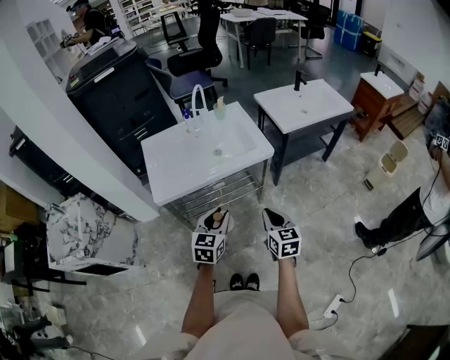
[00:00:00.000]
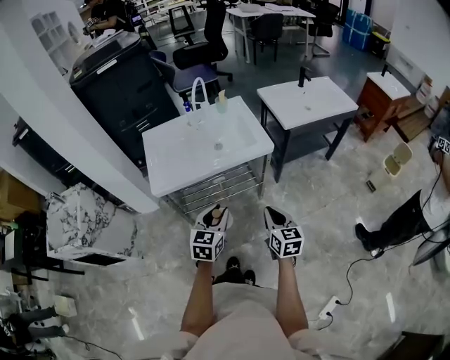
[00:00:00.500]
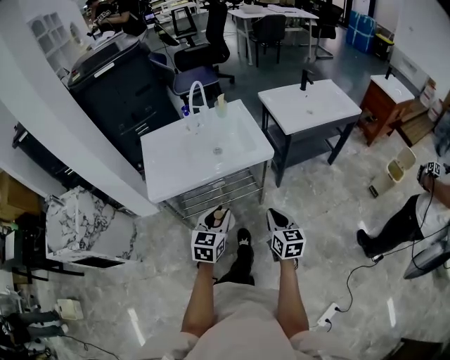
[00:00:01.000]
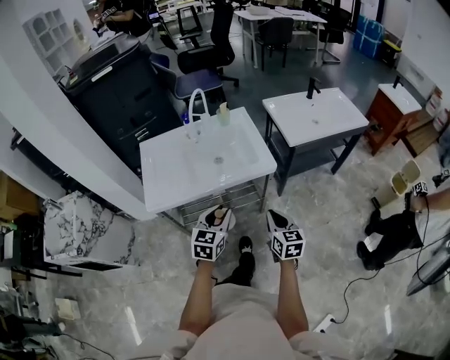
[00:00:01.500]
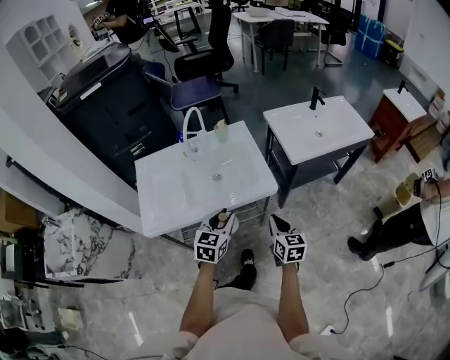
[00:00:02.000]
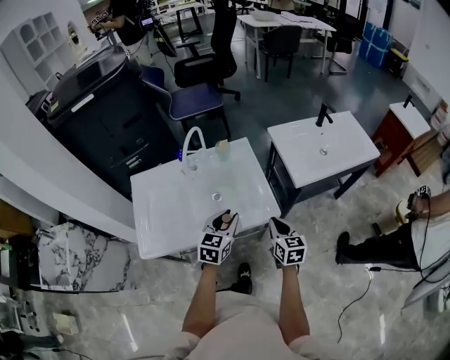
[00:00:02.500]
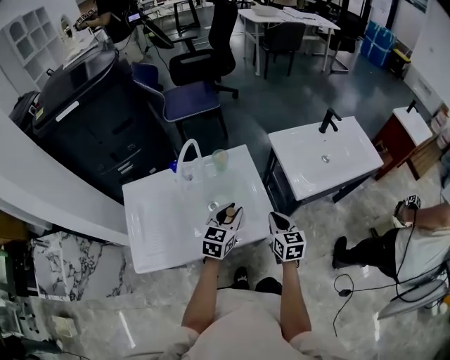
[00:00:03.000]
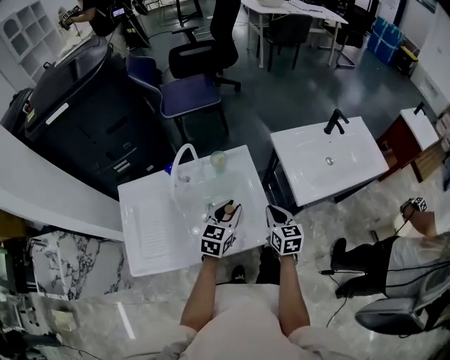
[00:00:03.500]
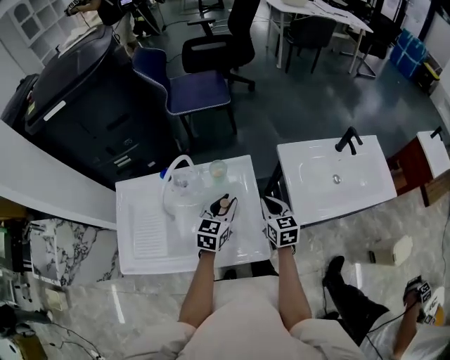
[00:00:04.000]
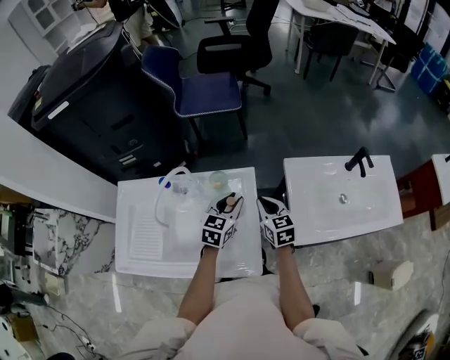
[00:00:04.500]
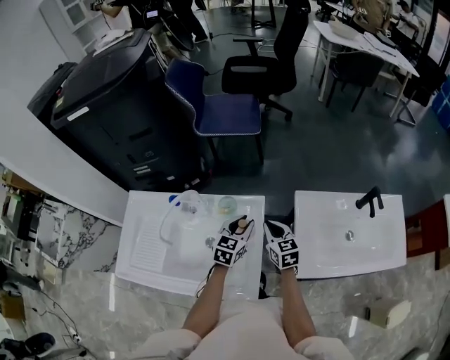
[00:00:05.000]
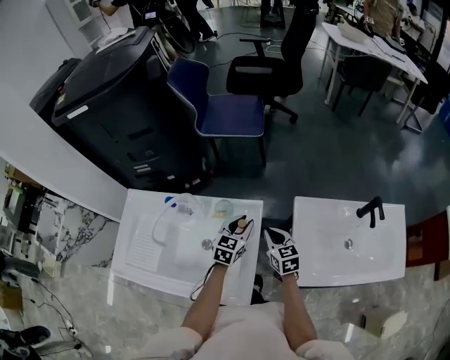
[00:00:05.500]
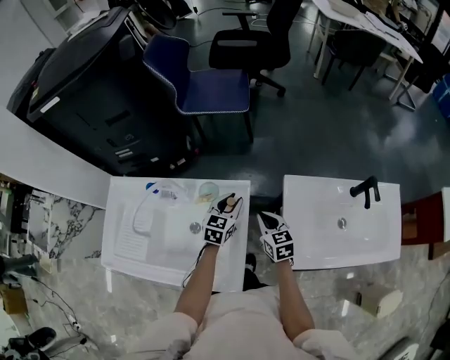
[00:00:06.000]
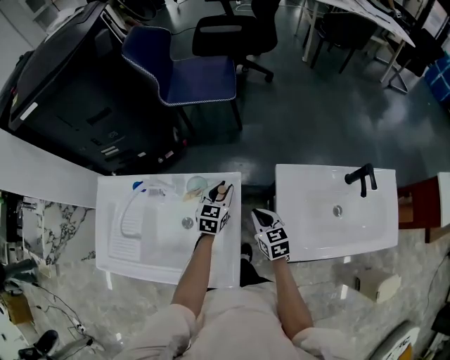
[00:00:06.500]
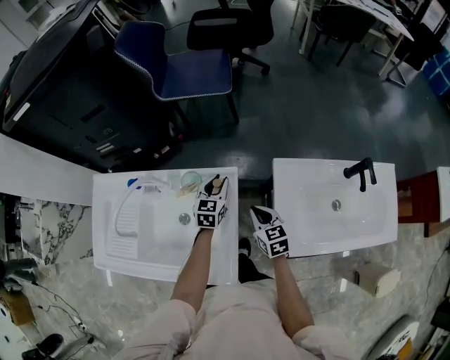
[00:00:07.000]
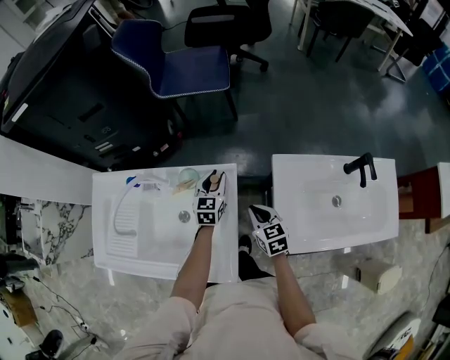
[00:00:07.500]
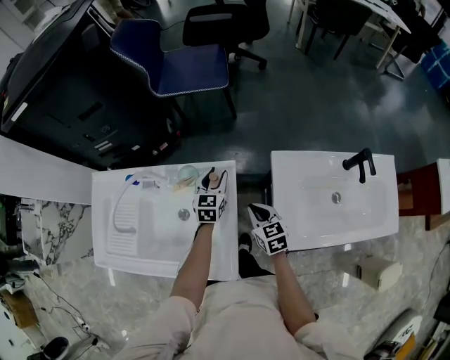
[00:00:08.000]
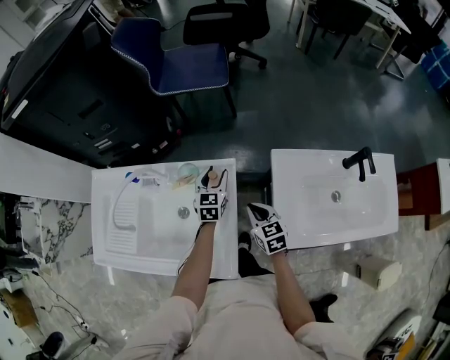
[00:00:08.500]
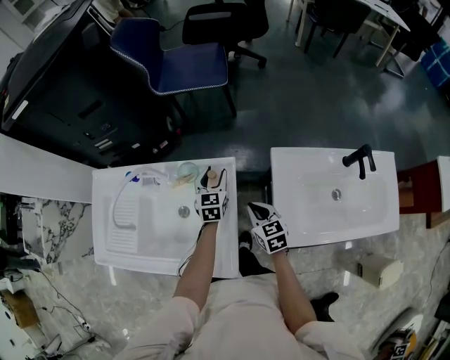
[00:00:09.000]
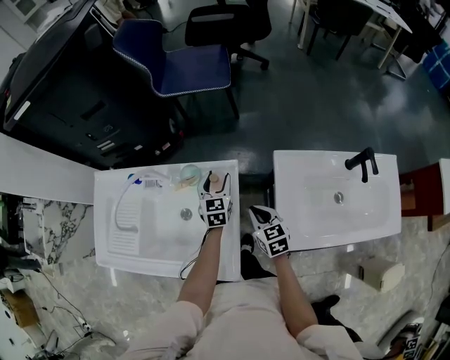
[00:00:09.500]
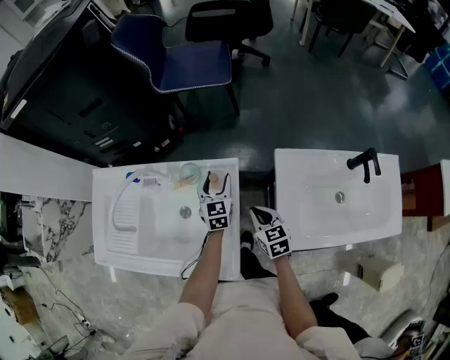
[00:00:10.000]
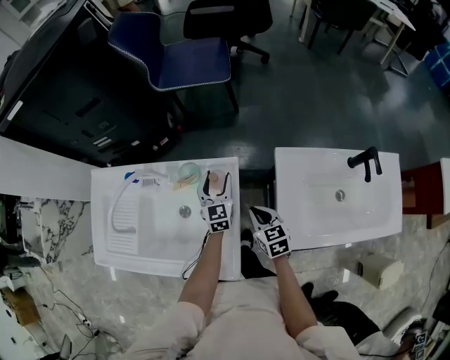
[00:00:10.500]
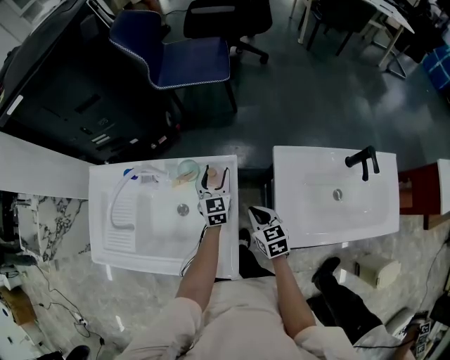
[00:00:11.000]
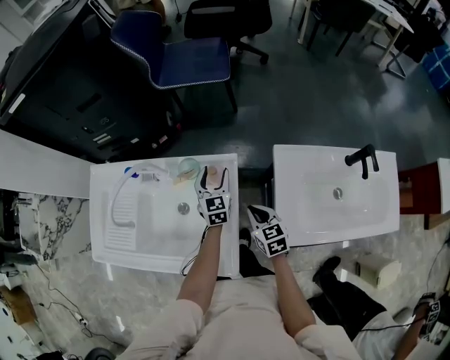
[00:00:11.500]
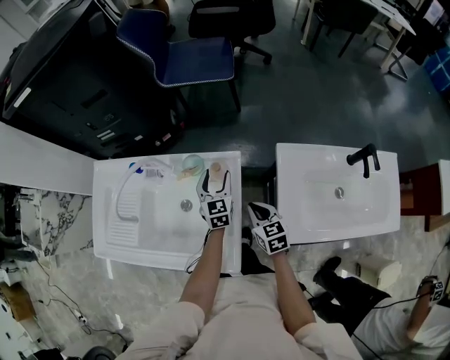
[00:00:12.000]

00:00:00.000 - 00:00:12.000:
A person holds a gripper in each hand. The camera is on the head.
00:00:00.000 - 00:00:02.000: The grippers both shift forward by some 20 cm.
00:00:02.000 - 00:00:04.000: Both grippers travel together forward, approximately 30 cm.
00:00:04.000 - 00:00:06.000: The left gripper is displaced forward, downward and to the right by roughly 15 cm, while the right gripper moves forward and downward, approximately 10 cm.
00:00:06.000 - 00:00:08.000: The left gripper changes place by roughly 5 cm.
00:00:08.000 - 00:00:12.000: The grippers move only a little.

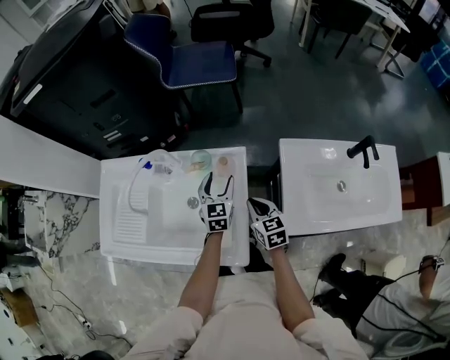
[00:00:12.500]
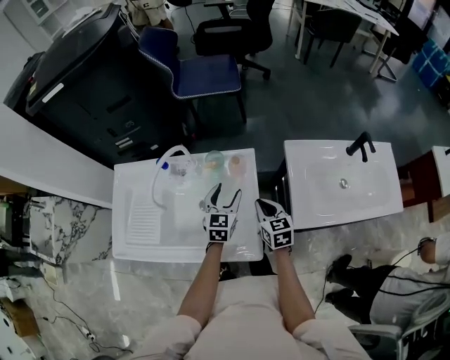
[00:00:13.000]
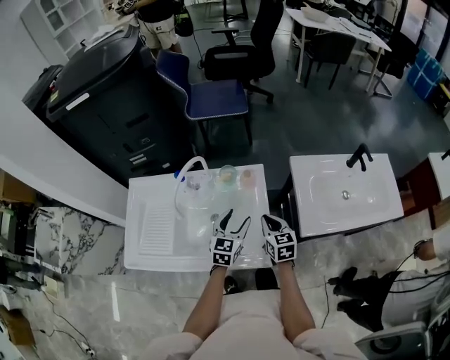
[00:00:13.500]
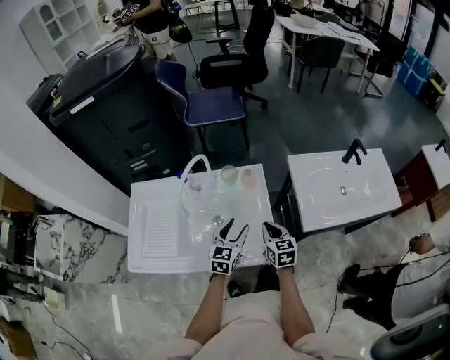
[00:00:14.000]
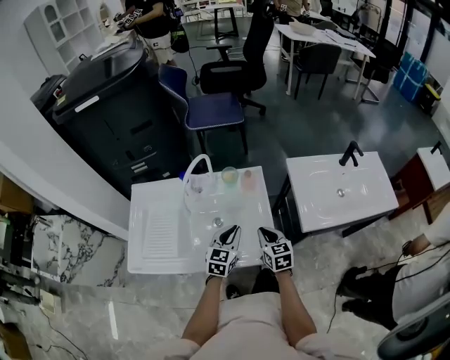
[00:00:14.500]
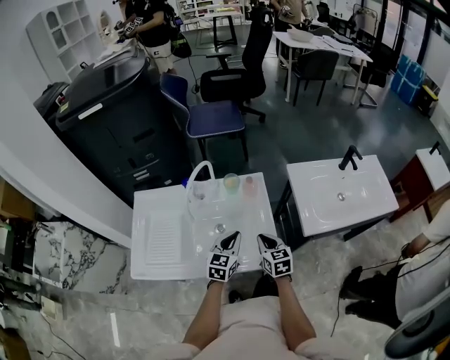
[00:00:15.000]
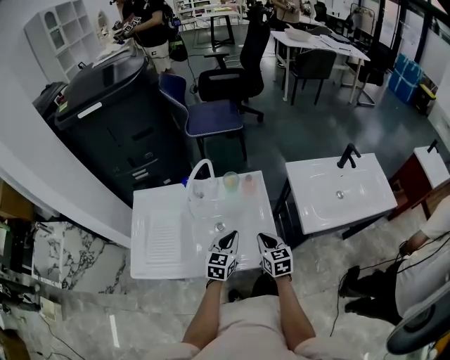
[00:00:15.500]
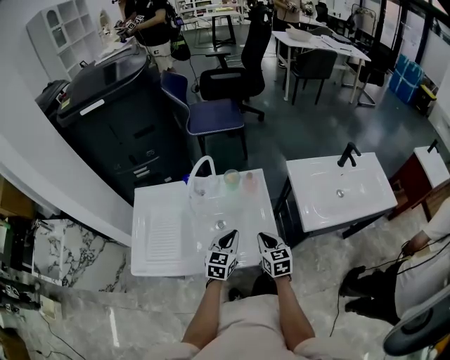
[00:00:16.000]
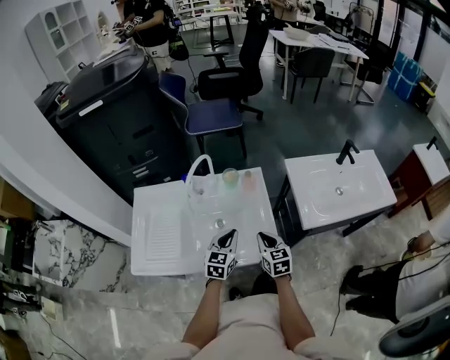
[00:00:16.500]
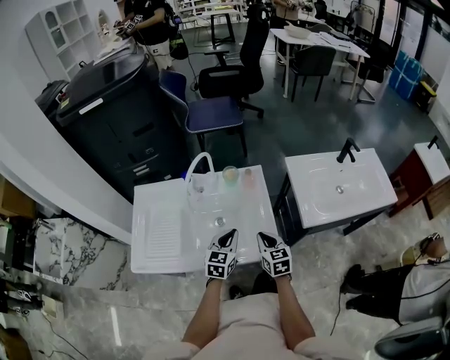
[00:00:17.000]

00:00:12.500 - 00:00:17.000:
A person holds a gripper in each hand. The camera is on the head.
00:00:12.500 - 00:00:14.500: The right gripper moves backward and to the left, about 10 cm. Meanwhile the left gripper travels backward by some 15 cm, changes its angle by approximately 20 degrees, and closes its fingers.
00:00:14.500 - 00:00:17.000: There are only small adjustments of the grippers.

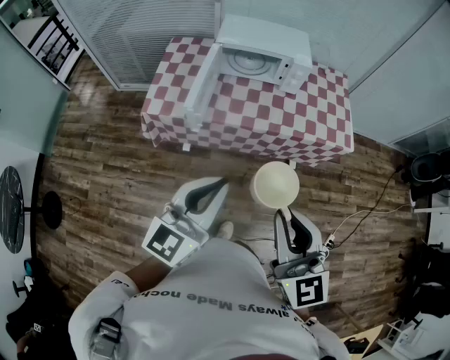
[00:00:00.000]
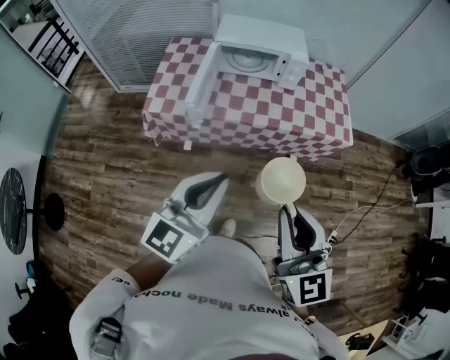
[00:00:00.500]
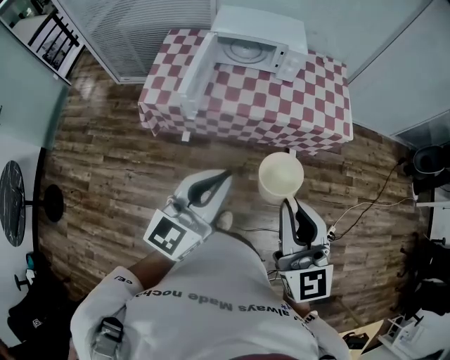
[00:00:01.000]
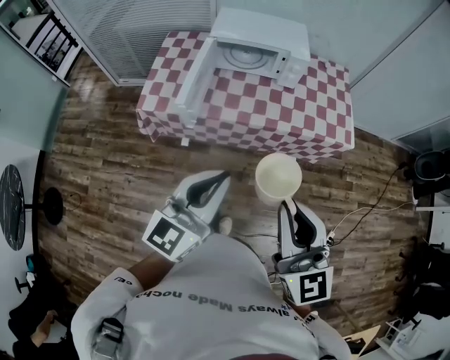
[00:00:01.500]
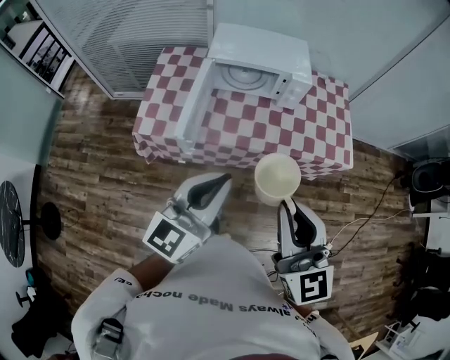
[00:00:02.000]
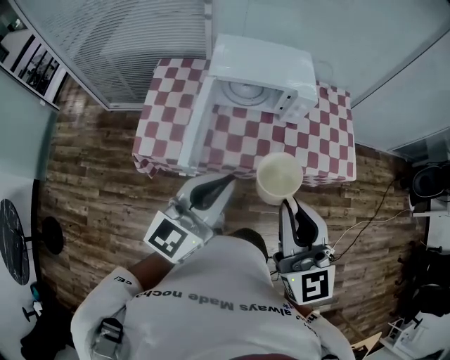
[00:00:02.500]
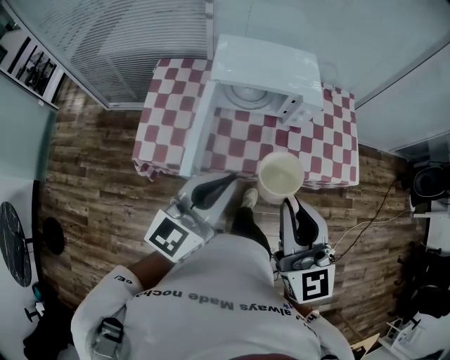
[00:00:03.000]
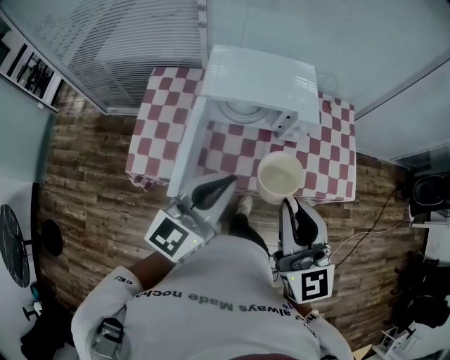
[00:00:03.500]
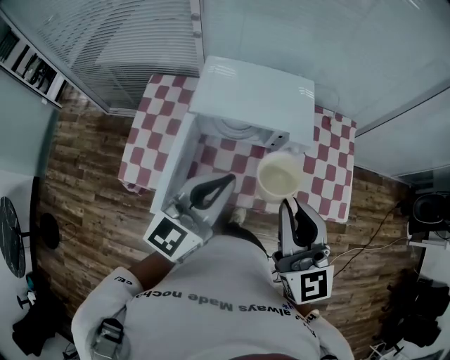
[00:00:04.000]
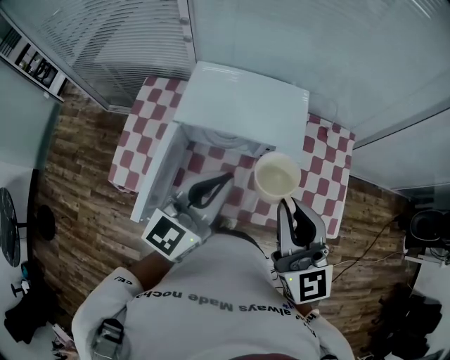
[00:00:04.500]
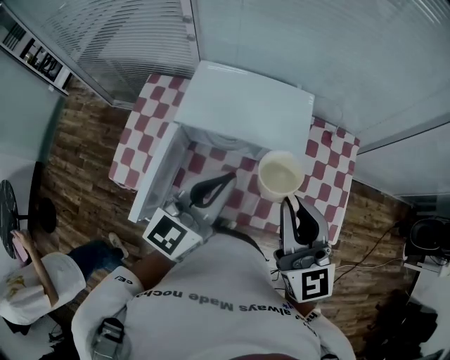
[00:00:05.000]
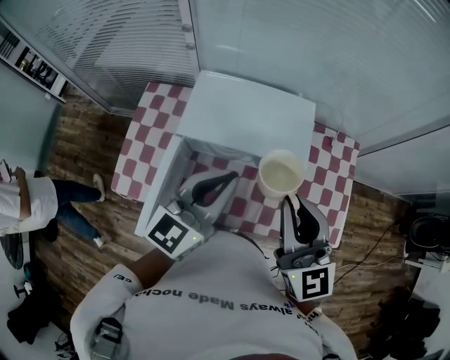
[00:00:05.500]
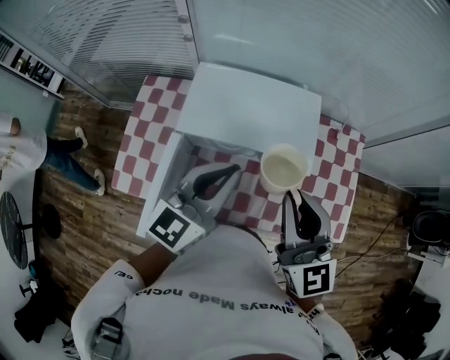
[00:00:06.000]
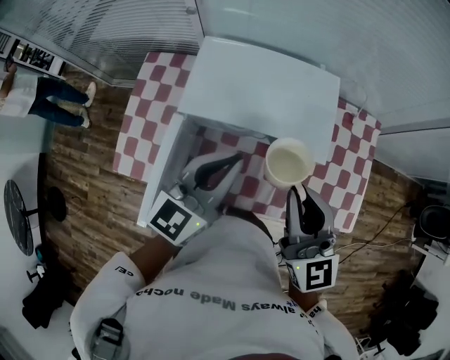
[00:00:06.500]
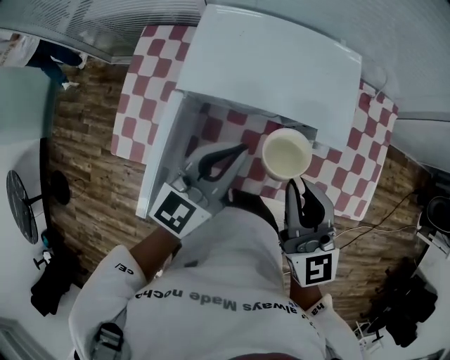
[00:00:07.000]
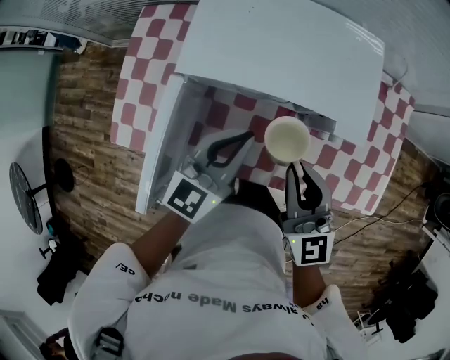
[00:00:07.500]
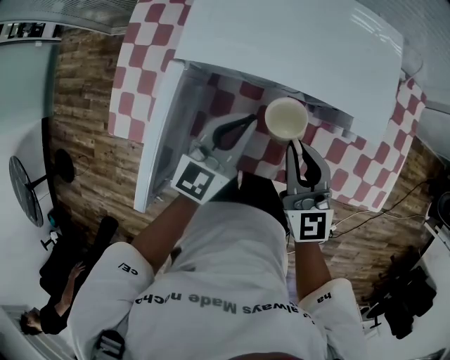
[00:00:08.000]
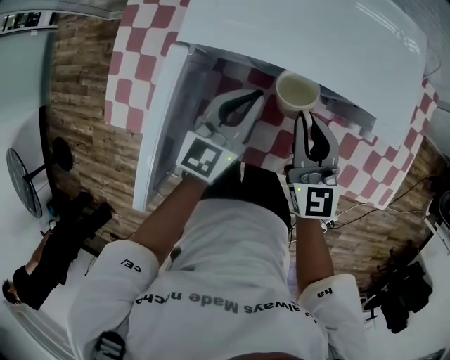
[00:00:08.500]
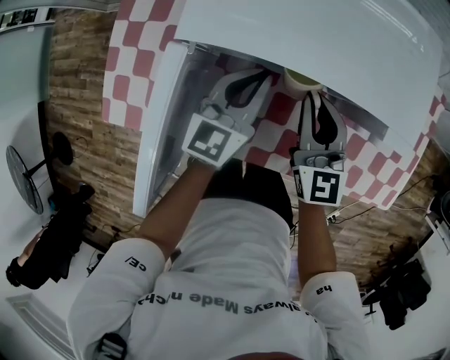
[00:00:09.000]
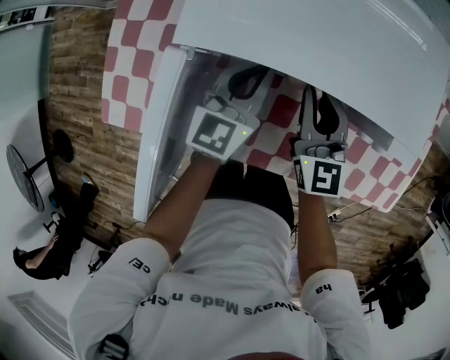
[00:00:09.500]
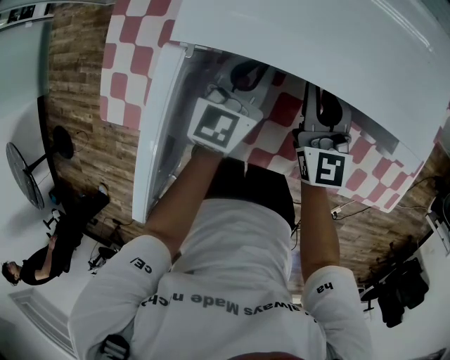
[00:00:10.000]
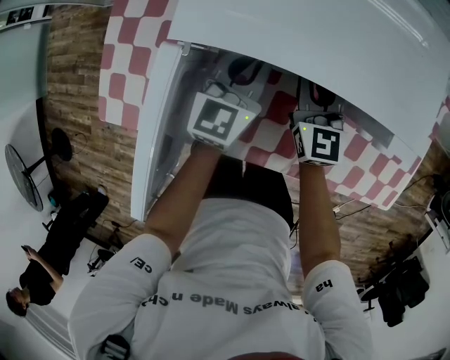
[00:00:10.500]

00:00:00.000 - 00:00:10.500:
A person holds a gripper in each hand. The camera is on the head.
00:00:00.000 - 00:00:02.000: Both grippers travel together forward, roughly 15 cm.
00:00:02.000 - 00:00:04.000: Both grippers move forward, about 35 cm.
00:00:04.000 - 00:00:06.500: Both grippers travel together forward and downward, roughly 20 cm.
00:00:06.500 - 00:00:08.500: The grippers both shift downward by approximately 25 cm.
00:00:08.500 - 00:00:10.500: The left gripper goes roughly 10 cm forward, while the right gripper goes some 15 cm forward and downward.
